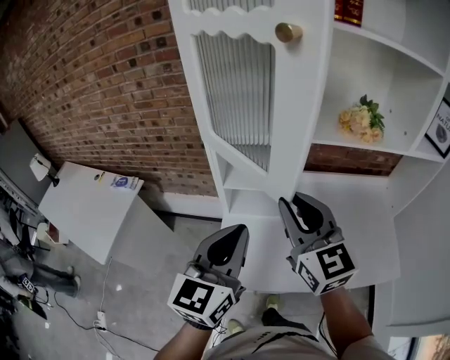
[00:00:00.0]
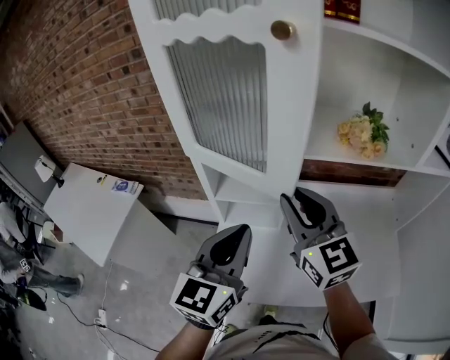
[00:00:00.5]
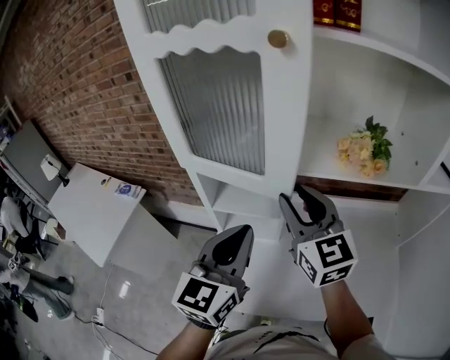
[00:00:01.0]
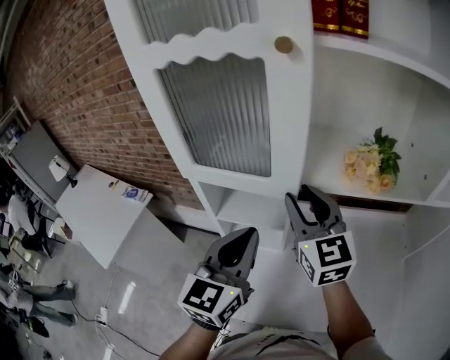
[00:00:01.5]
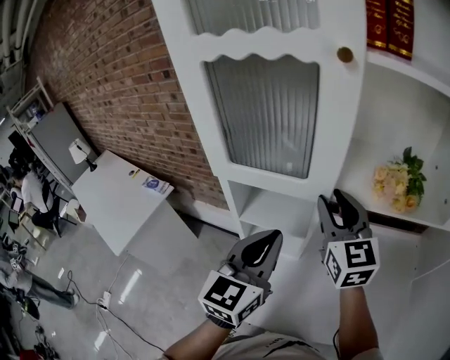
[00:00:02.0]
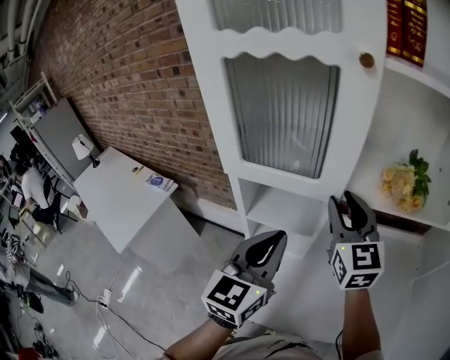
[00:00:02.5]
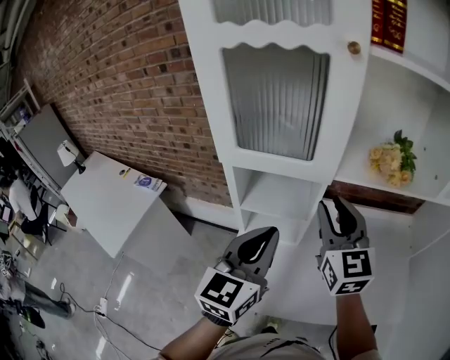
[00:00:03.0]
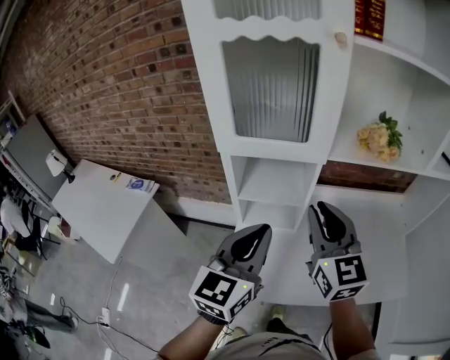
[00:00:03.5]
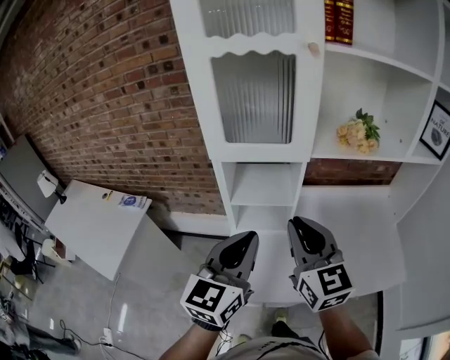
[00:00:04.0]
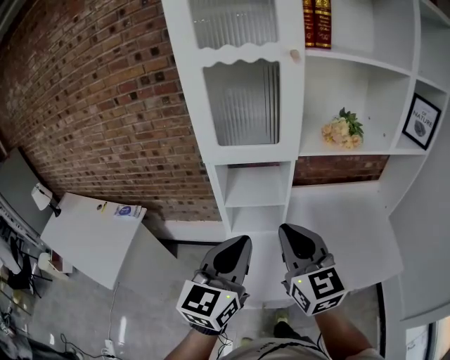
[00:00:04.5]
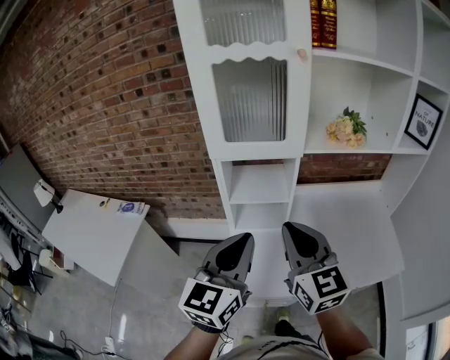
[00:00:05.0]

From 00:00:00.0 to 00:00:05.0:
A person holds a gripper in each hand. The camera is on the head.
From 00:00:00.0 to 00:00:02.5: The two grippers go about 15 cm forward and to the right.
From 00:00:02.5 to 00:00:05.0: The right gripper shifts about 25 cm backward, and closes its fingers. Meanwhile the left gripper moves backward and to the left, some 20 cm.

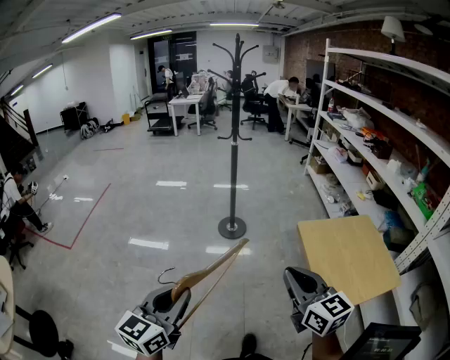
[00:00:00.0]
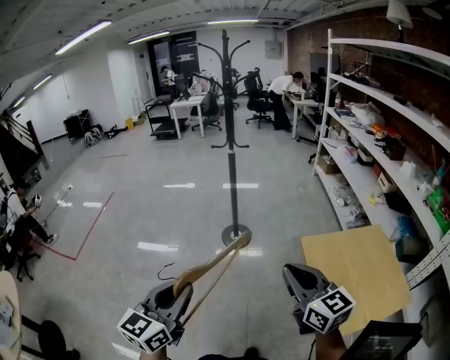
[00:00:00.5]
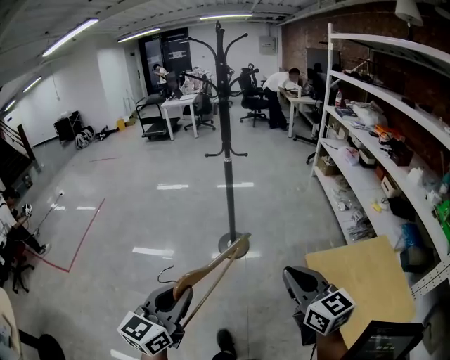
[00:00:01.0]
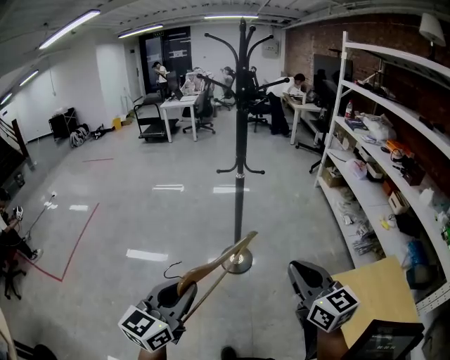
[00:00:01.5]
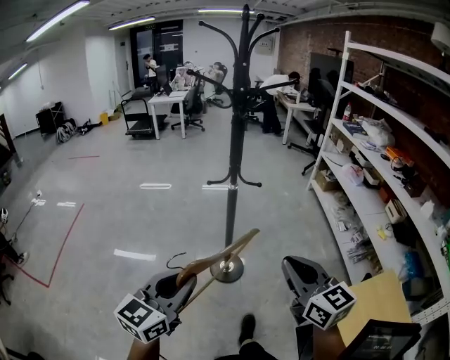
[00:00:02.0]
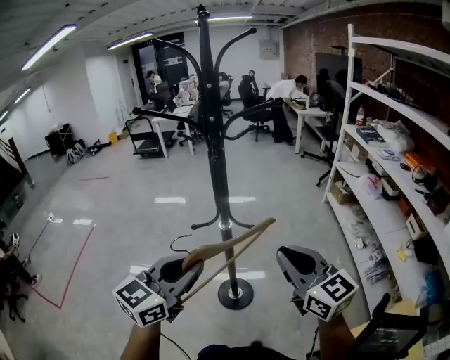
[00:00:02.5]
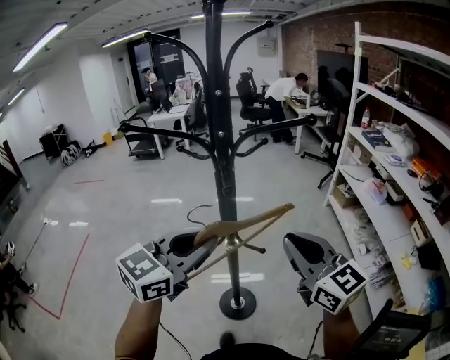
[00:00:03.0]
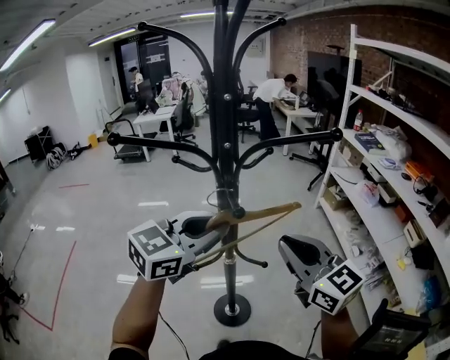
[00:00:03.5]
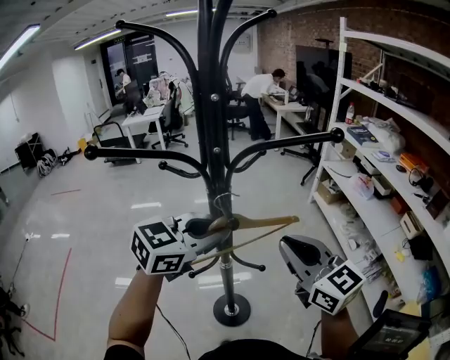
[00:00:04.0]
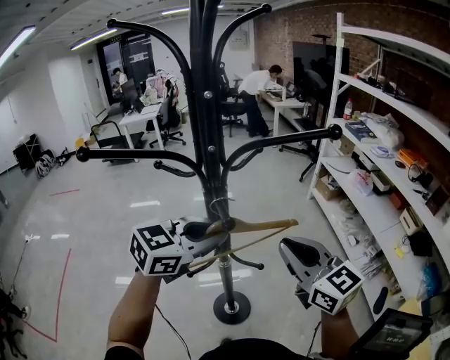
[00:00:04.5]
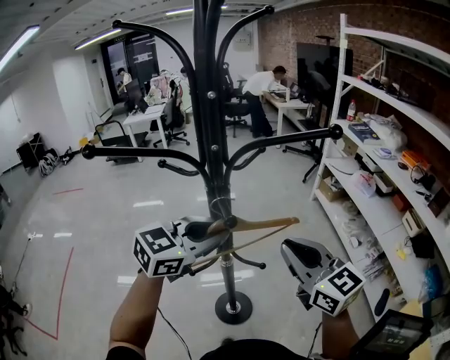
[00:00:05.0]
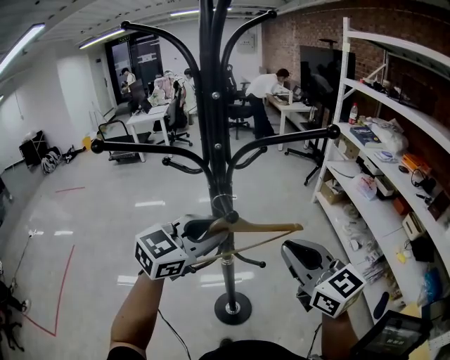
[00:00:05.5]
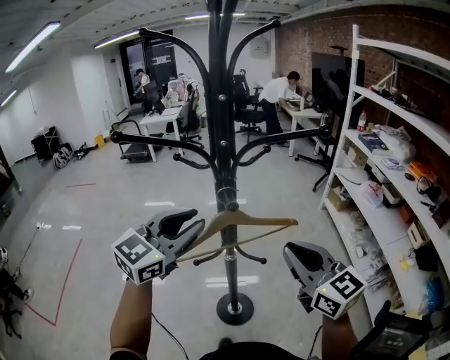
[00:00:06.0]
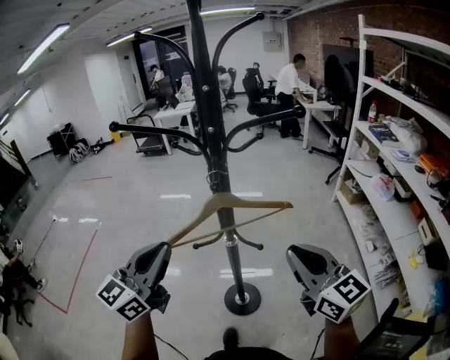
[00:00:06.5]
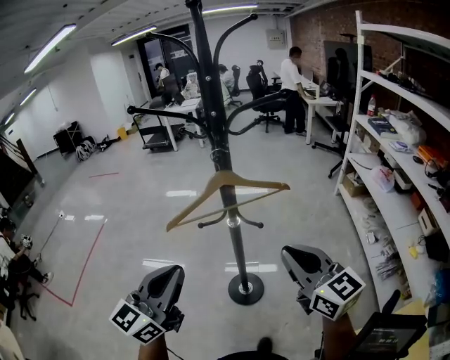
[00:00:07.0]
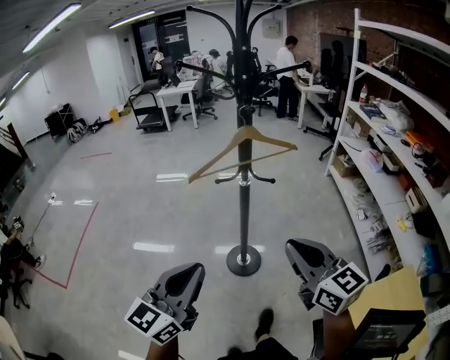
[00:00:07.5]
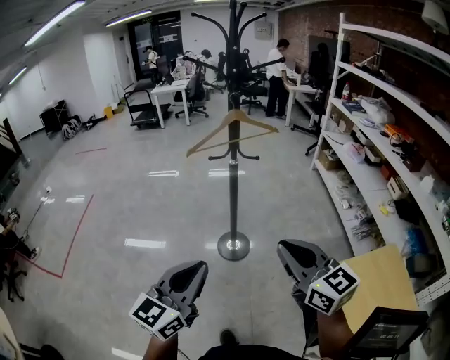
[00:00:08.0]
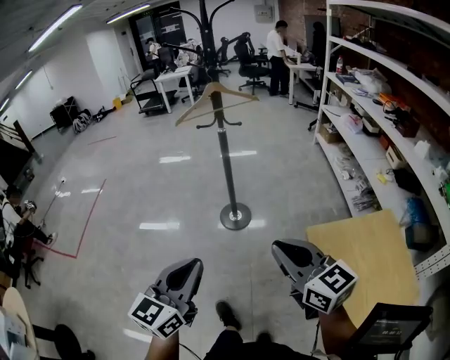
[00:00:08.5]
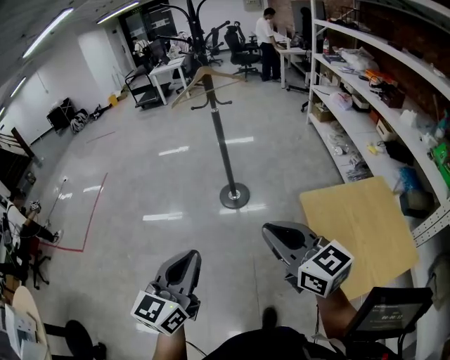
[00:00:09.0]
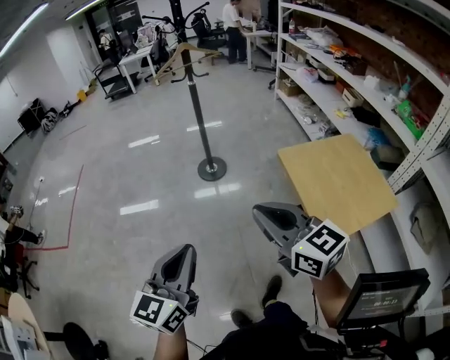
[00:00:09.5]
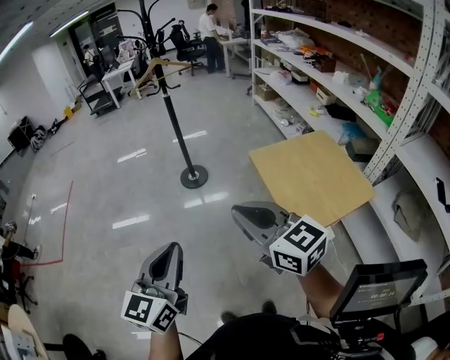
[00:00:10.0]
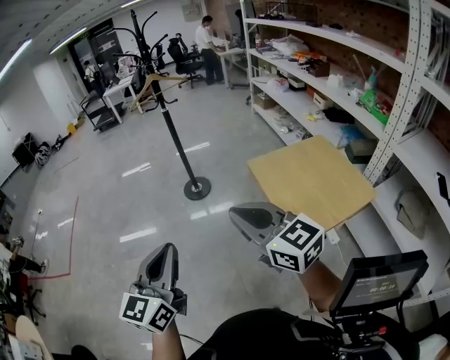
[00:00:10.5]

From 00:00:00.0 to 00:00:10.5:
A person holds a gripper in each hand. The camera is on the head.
From 00:00:00.0 to 00:00:02.0: Both grippers are carried forward, some 50 cm.
From 00:00:02.0 to 00:00:04.0: The grippers both shift forward by about 40 cm. The left gripper changes its angle by roughly 30 degrees.
From 00:00:04.0 to 00:00:06.5: The right gripper heads backward, covering approximately 5 cm. Meanwhile the left gripper travels backward and to the left by about 20 cm, and turns by roughly 40 degrees.
From 00:00:06.5 to 00:00:08.5: The two grippers travel together, backward, about 50 cm.
From 00:00:08.5 to 00:00:10.5: Both grippers move backward, about 30 cm.

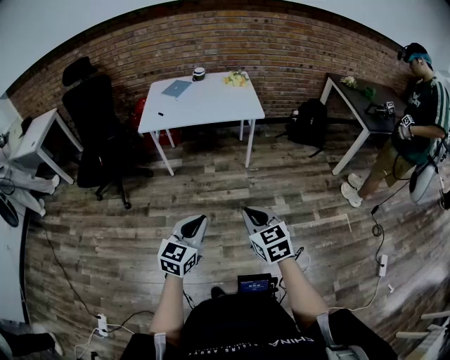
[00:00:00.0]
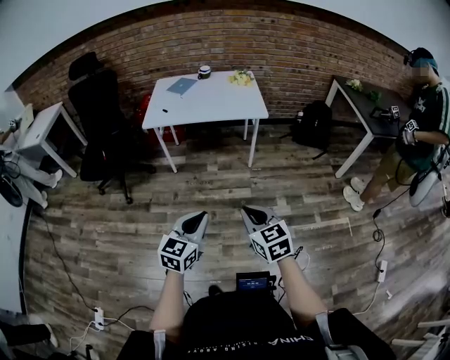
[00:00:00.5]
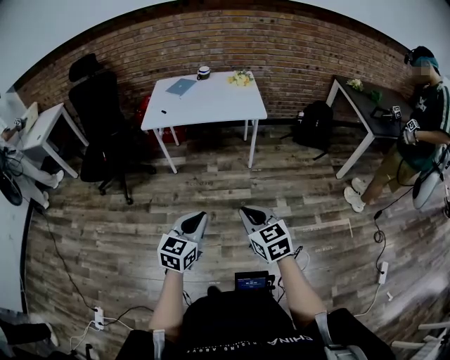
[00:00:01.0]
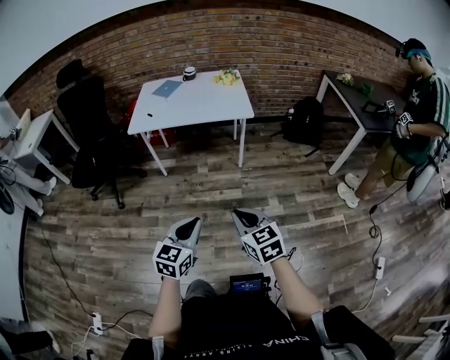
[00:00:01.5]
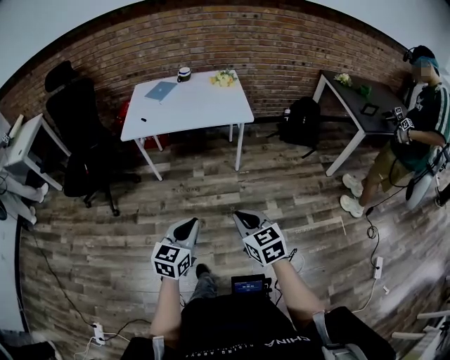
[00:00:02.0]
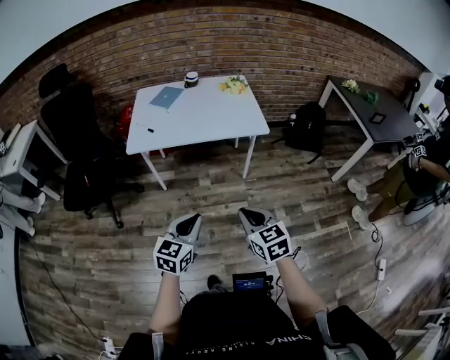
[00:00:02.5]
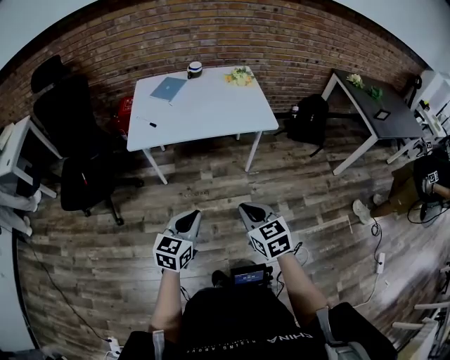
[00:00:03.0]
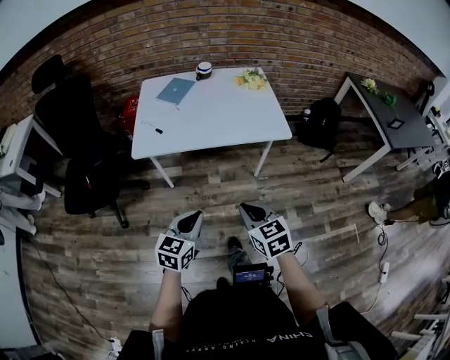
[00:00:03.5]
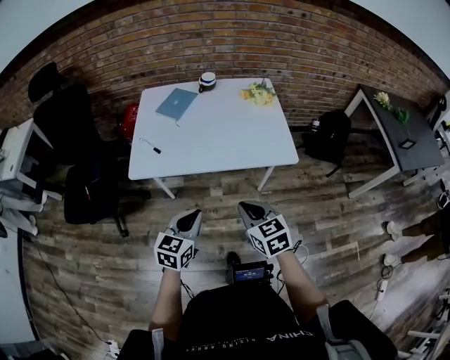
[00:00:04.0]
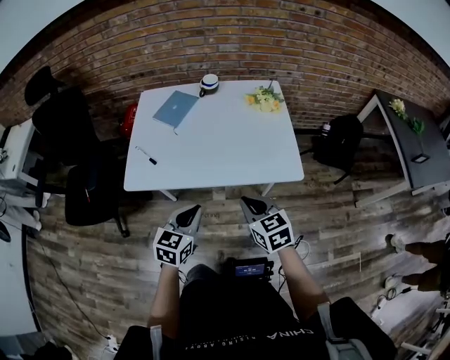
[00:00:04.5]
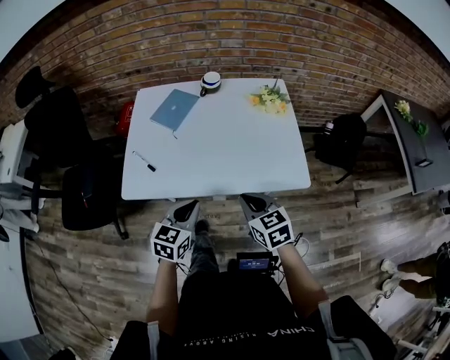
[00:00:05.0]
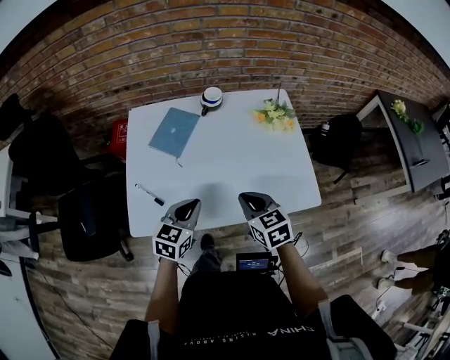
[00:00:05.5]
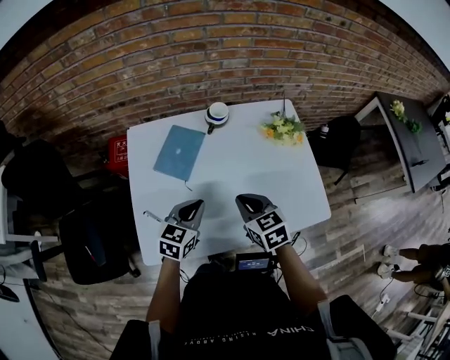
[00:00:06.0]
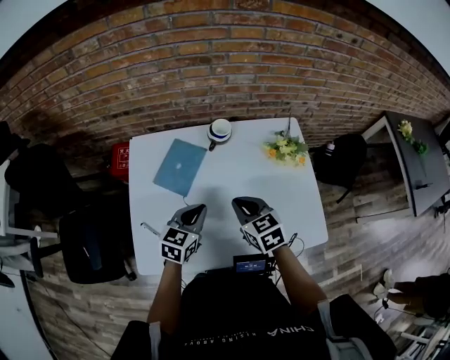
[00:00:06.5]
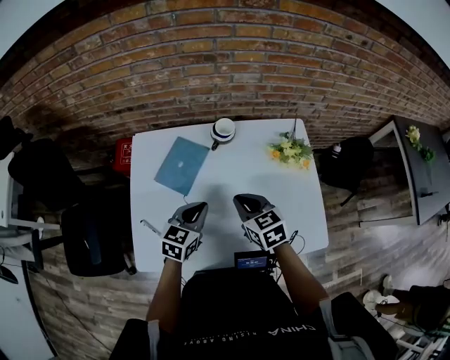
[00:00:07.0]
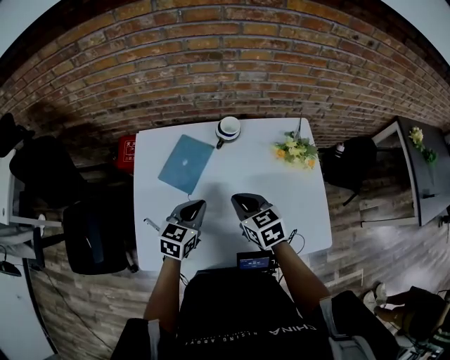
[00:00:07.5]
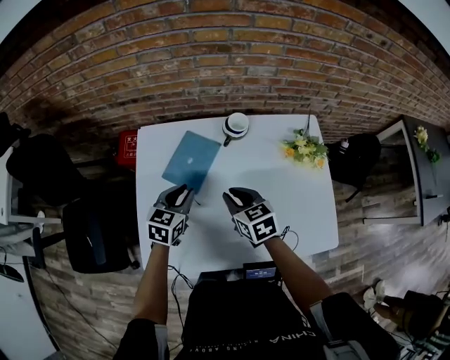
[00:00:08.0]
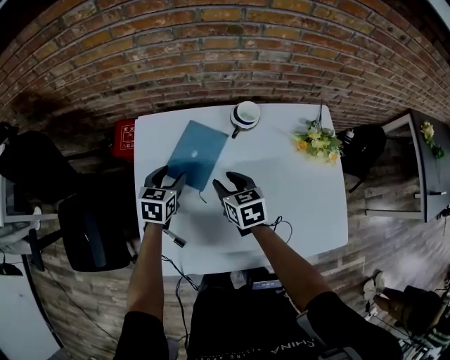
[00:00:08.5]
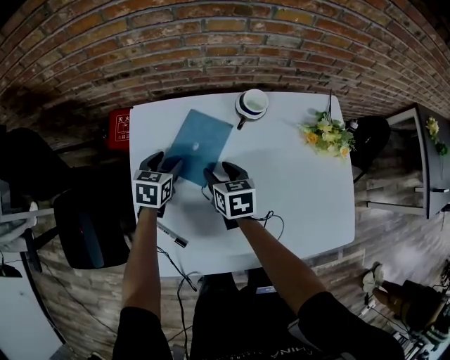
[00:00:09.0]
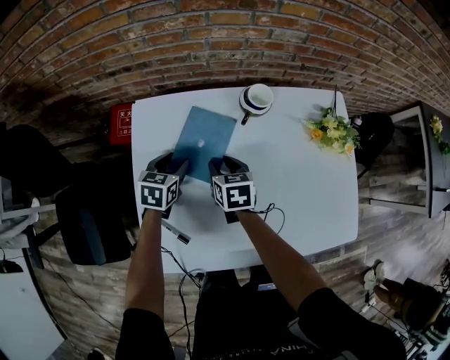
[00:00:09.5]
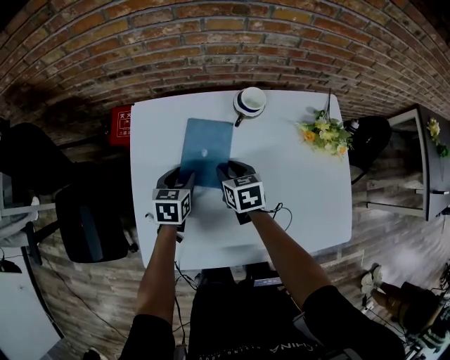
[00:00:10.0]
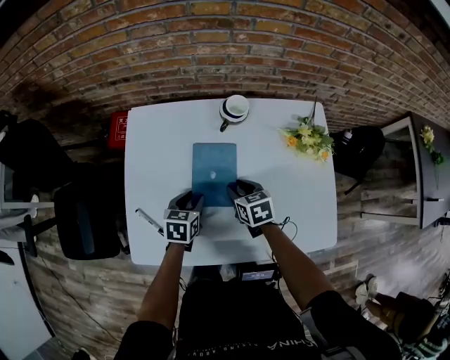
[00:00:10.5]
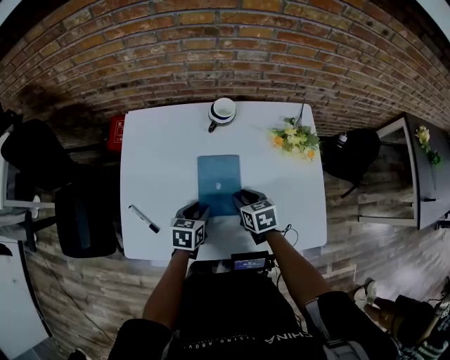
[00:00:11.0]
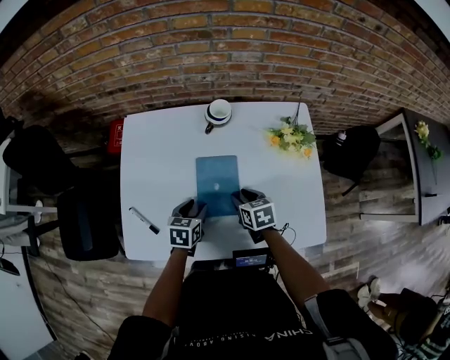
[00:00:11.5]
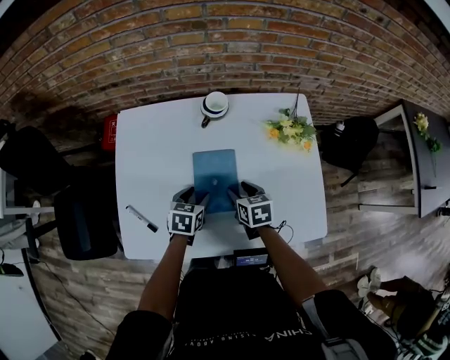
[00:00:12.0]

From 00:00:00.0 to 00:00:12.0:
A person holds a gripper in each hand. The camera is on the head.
From 00:00:00.0 to 00:00:02.0: Both grippers travel together forward, approximately 10 cm.
From 00:00:02.0 to 00:00:04.0: The two grippers go some 35 cm forward.
From 00:00:04.0 to 00:00:06.0: The two grippers travel together, forward, some 40 cm.
From 00:00:06.0 to 00:00:08.0: The grippers both shift forward and to the left by approximately 10 cm.
From 00:00:08.0 to 00:00:10.0: The left gripper moves downward, some 10 cm, and opens its fingers. Meanwhile the right gripper heads downward and forward, covering some 15 cm.
From 00:00:10.0 to 00:00:12.0: Both grippers move to the right and backward, approximately 15 cm.
